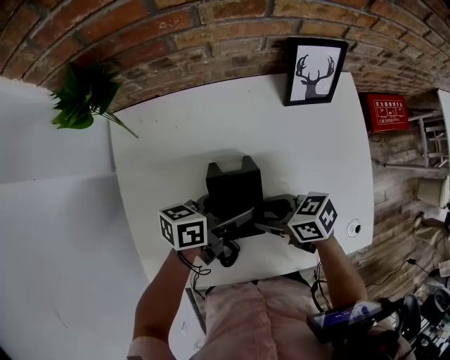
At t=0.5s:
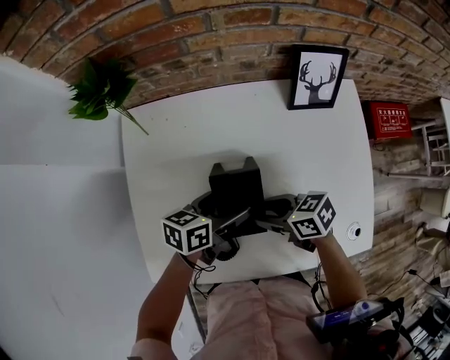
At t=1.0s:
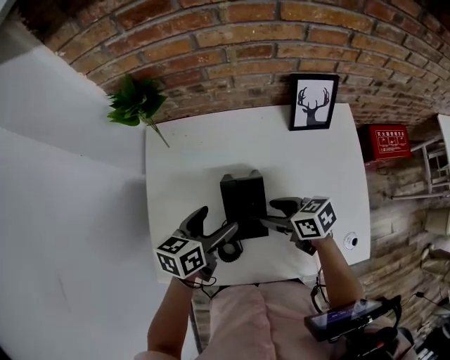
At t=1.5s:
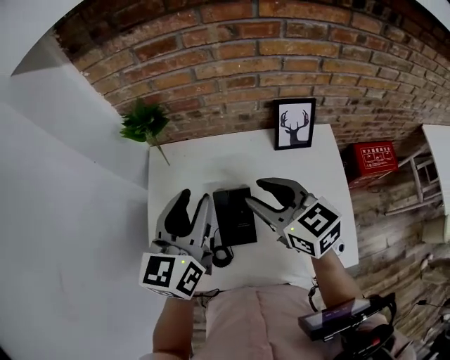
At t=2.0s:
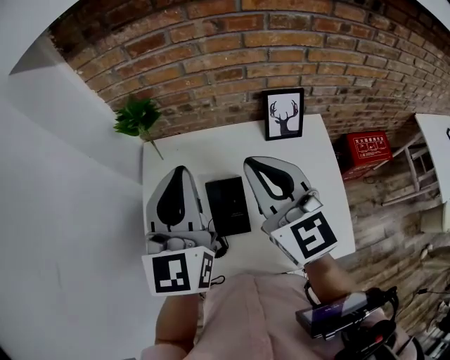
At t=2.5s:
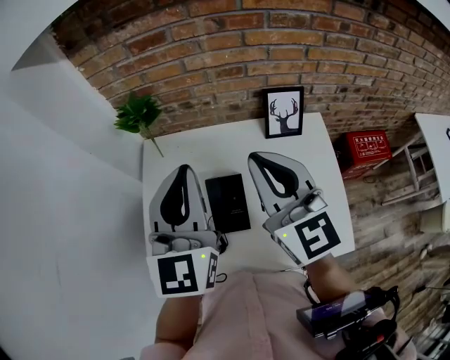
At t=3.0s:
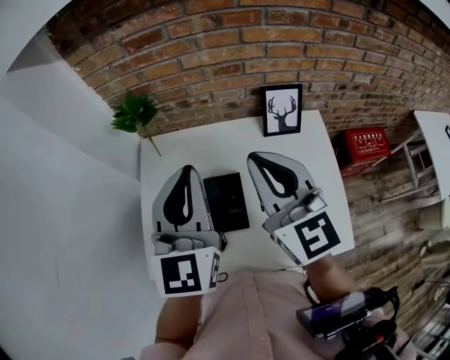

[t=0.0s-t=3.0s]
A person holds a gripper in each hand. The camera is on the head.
t=0.0s to t=1.5s: Both grippers move upward, some 25 cm. The right gripper swivels approximately 50 degrees. The left gripper swivels approximately 70 degrees, and closes its fingers.
t=1.5s to t=3.0s: The right gripper heads upward, covering about 10 cm, swivels roughly 30 degrees, and closes. Meanwhile the left gripper heads upward, covering some 5 cm, turns by approximately 20 degrees, and closes.

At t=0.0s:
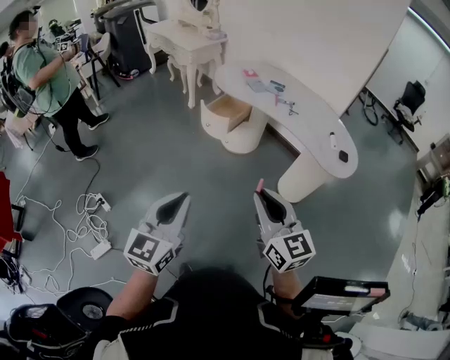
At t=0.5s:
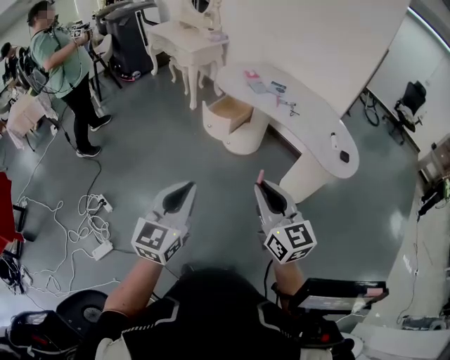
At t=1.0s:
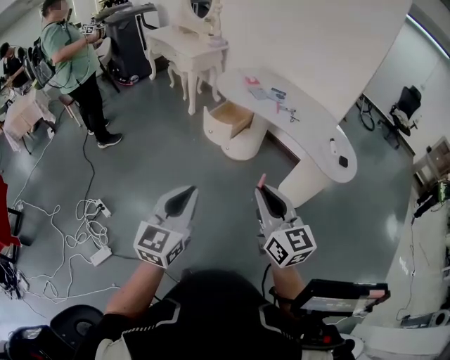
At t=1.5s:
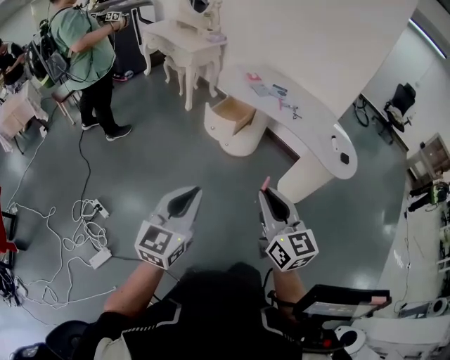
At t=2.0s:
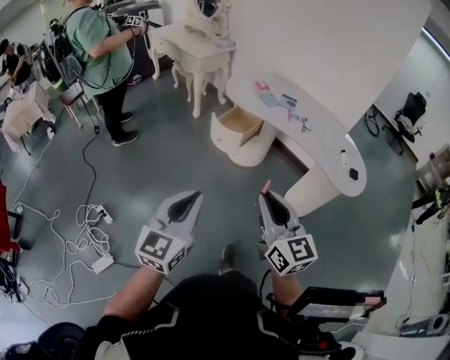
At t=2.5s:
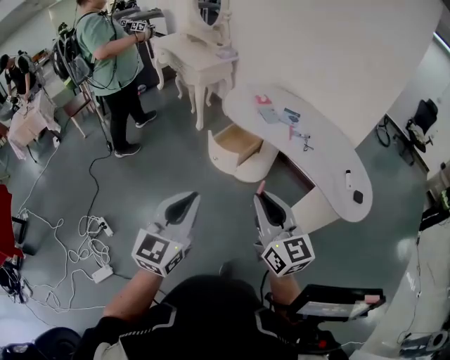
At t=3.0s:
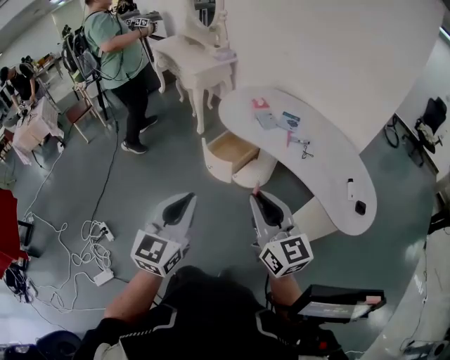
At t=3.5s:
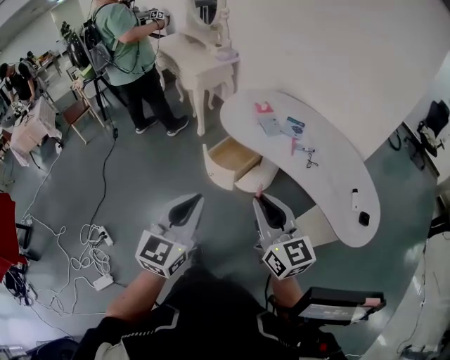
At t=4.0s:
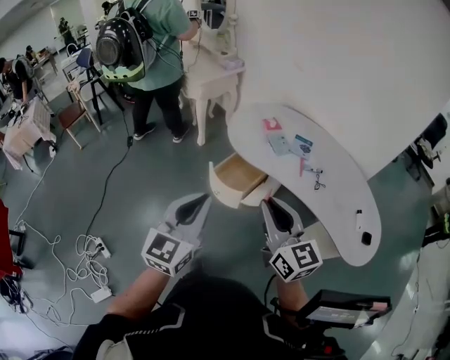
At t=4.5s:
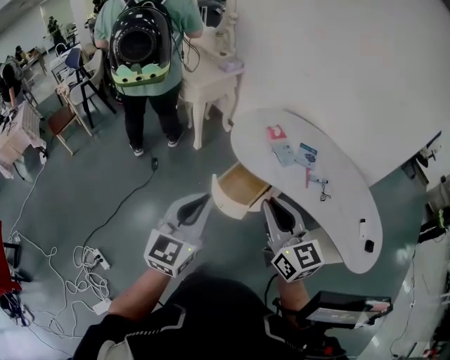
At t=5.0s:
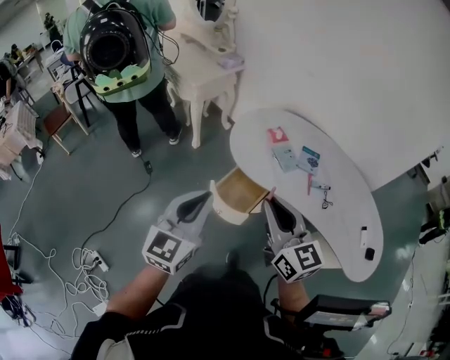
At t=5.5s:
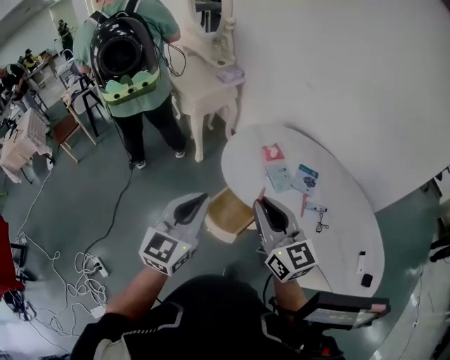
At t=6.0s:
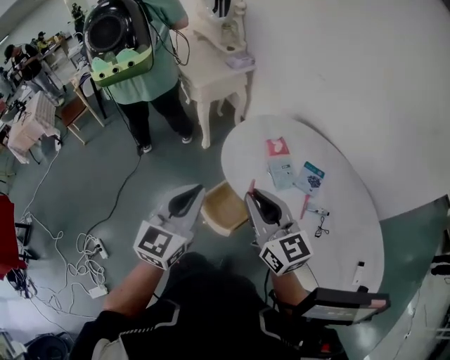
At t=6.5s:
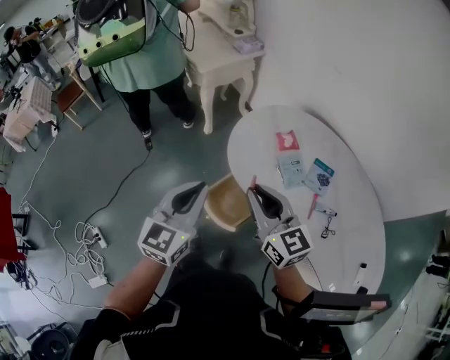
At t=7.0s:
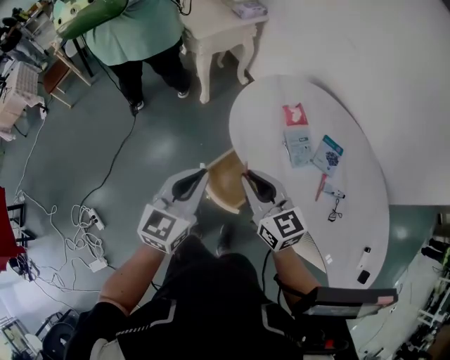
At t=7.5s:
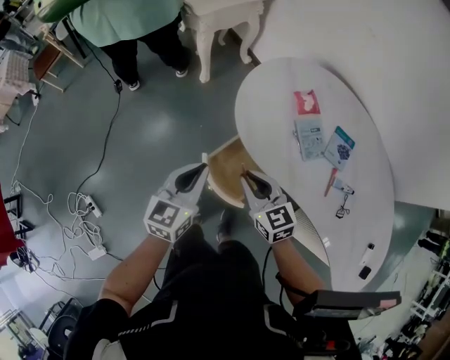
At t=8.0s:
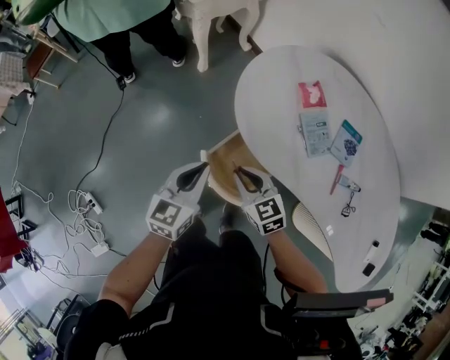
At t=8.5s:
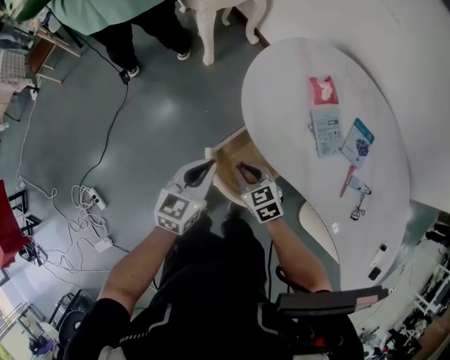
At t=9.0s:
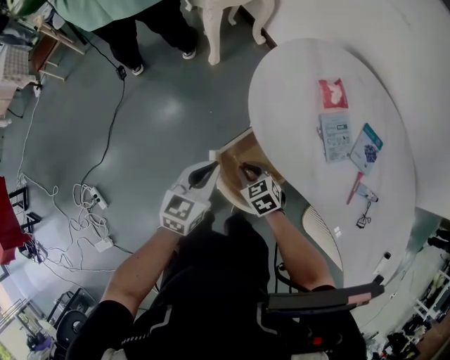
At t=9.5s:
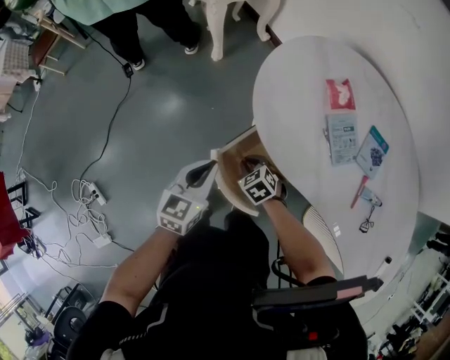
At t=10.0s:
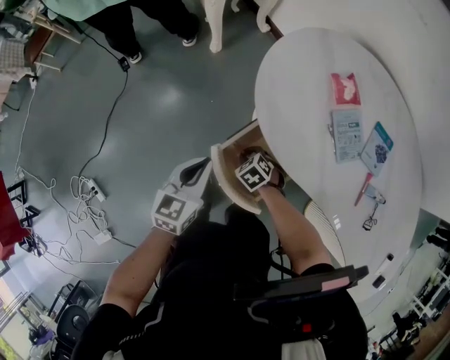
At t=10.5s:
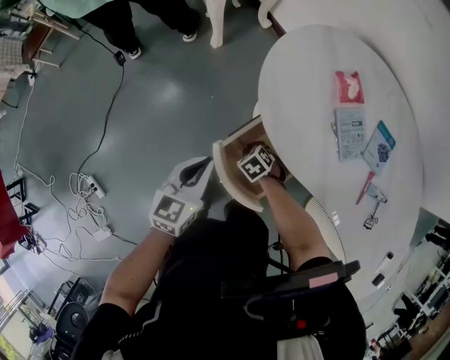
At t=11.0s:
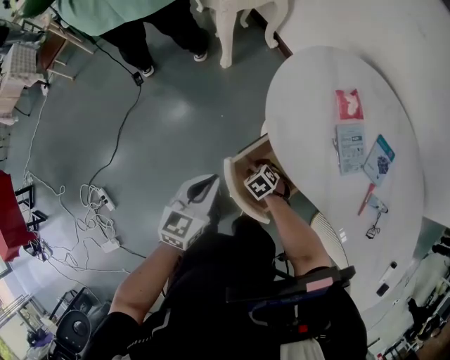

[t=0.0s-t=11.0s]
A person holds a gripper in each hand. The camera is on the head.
t=0.0s to t=2.0s: Both grippers move forward and to the left, some 10 cm.
t=2.0s to t=3.5s: The left gripper goes about 25 cm forward and to the right. The right gripper goes approximately 25 cm forward.
t=3.5s to t=5.5s: The grippers both shift forward by about 30 cm.
t=5.5s to t=7.5s: The right gripper is displaced downward by approximately 25 cm, and swivels approximately 30 degrees; the left gripper is displaced downward and forward by approximately 25 cm, and changes its angle by about 20 degrees.
t=7.5s to t=9.0s: The left gripper shifts approximately 15 cm downward, while the right gripper heads downward, covering about 20 cm, and swivels some 30 degrees.
t=9.0s to t=11.0s: The right gripper moves downward, about 10 cm, and turns by approximately 20 degrees.

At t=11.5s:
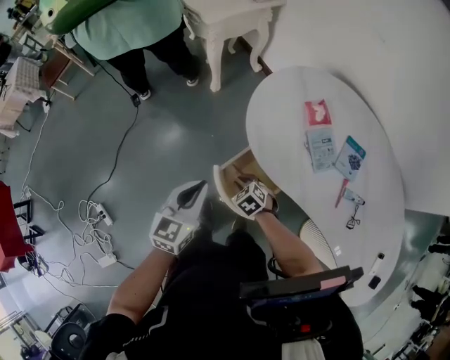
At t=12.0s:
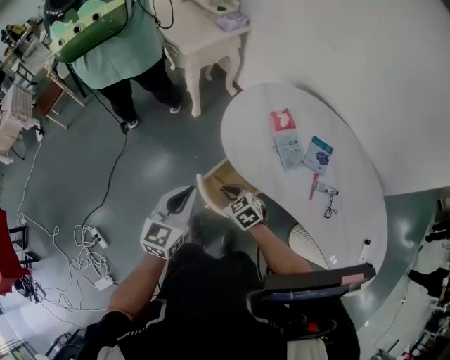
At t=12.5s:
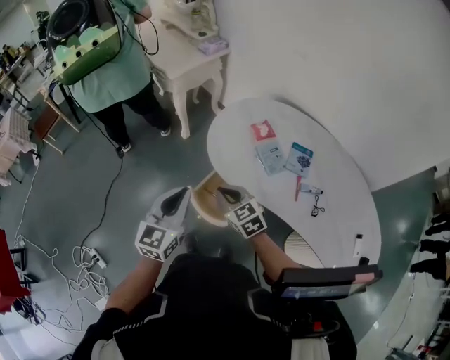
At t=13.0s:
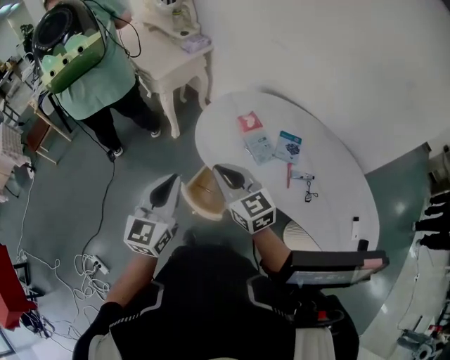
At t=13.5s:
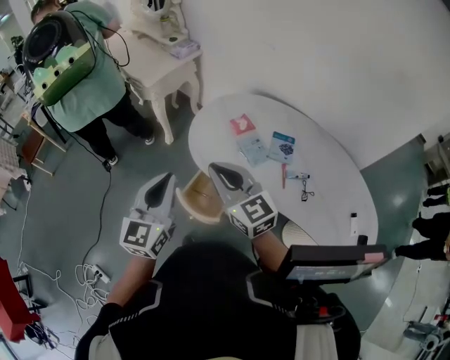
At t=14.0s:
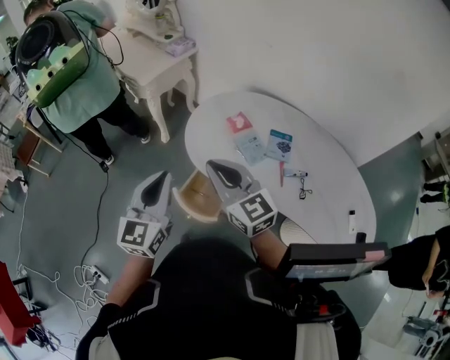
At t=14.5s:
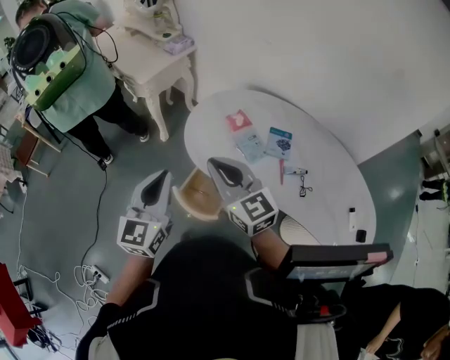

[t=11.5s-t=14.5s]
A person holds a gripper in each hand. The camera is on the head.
t=11.5s to t=13.0s: The left gripper shifts roughly 20 cm upward. The right gripper shifts approximately 40 cm upward, and tips its fingers upward by roughly 50 degrees.
t=13.0s to t=14.5s: The right gripper shifts some 5 cm upward.

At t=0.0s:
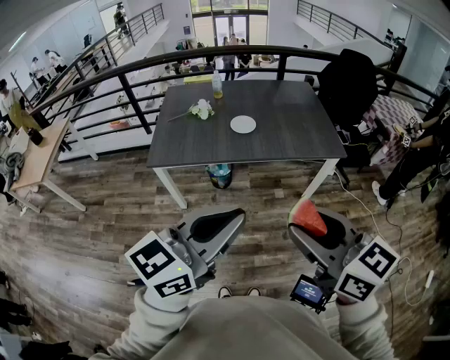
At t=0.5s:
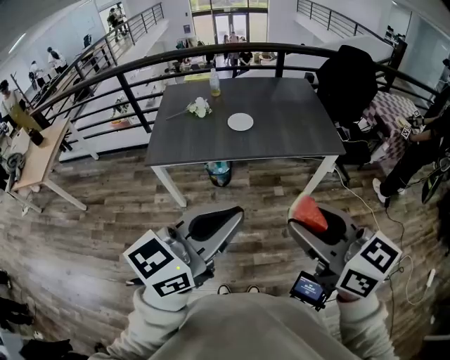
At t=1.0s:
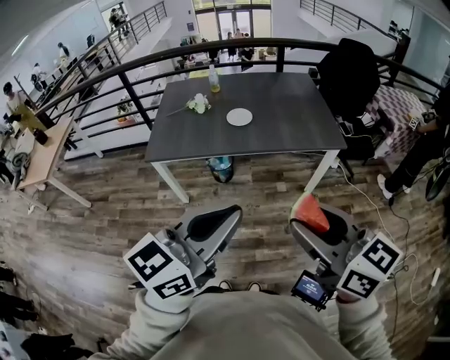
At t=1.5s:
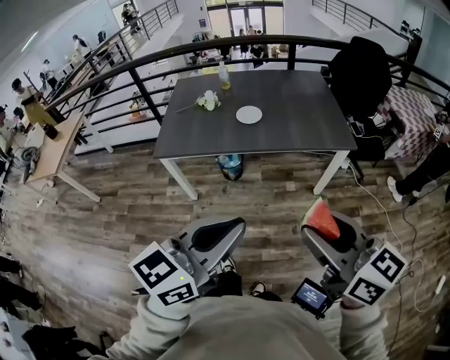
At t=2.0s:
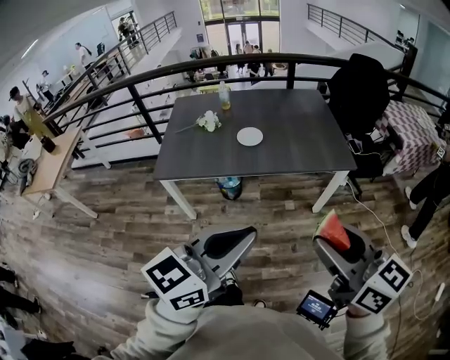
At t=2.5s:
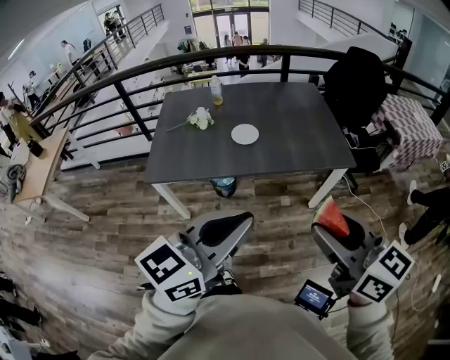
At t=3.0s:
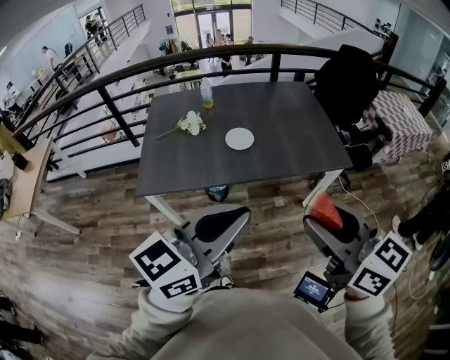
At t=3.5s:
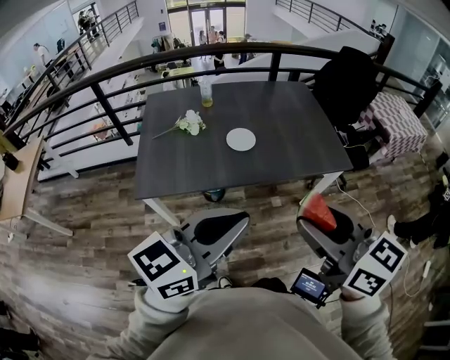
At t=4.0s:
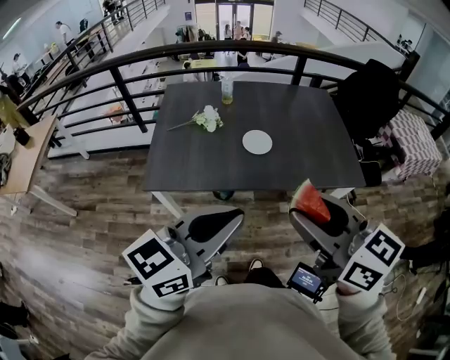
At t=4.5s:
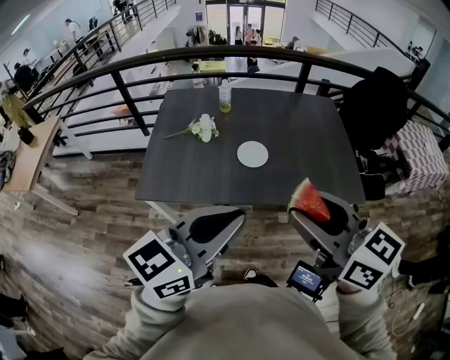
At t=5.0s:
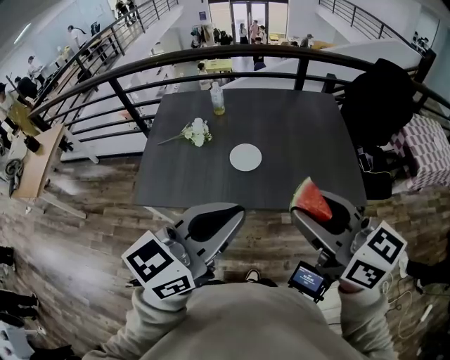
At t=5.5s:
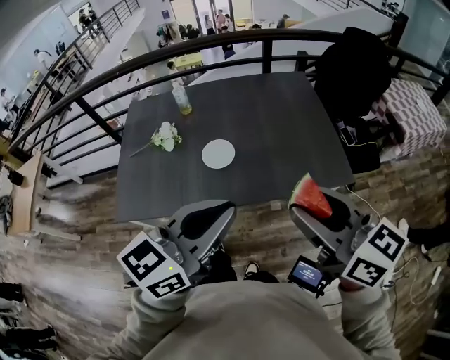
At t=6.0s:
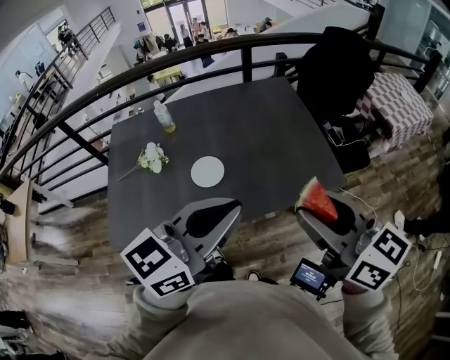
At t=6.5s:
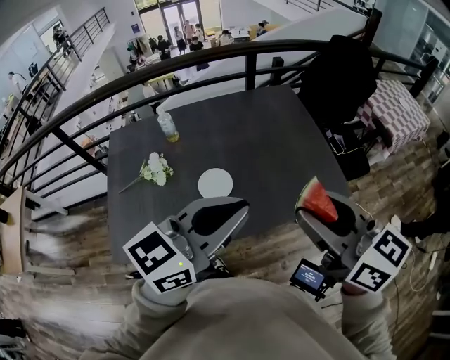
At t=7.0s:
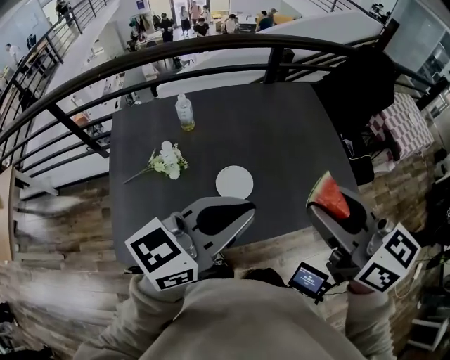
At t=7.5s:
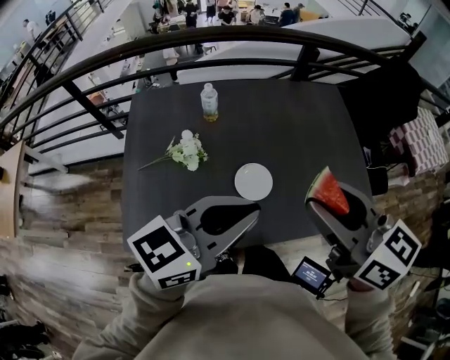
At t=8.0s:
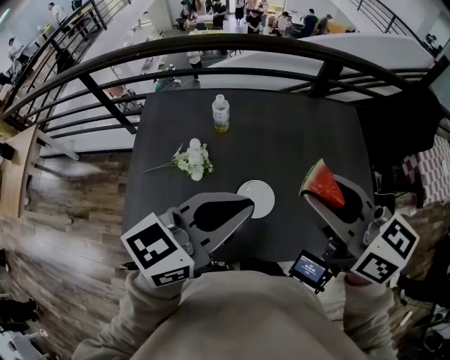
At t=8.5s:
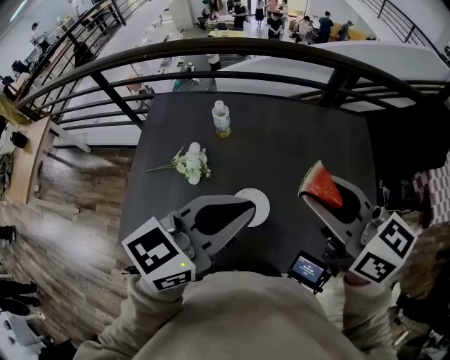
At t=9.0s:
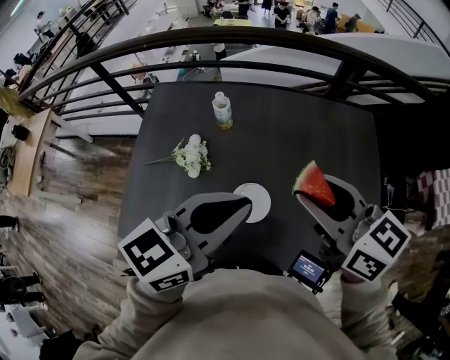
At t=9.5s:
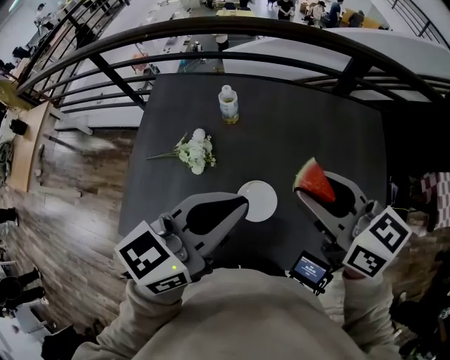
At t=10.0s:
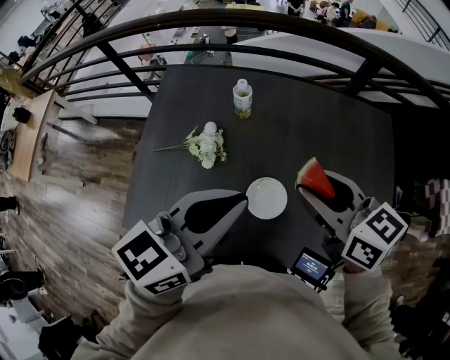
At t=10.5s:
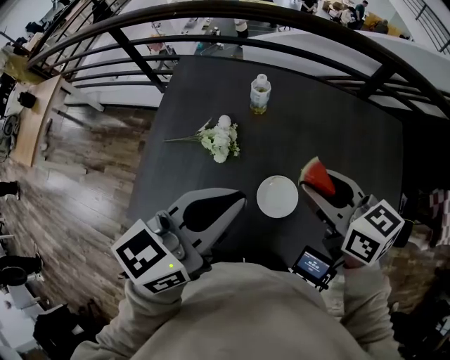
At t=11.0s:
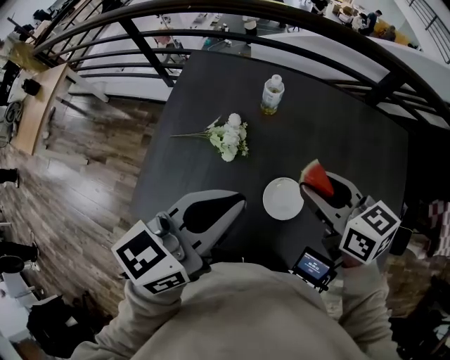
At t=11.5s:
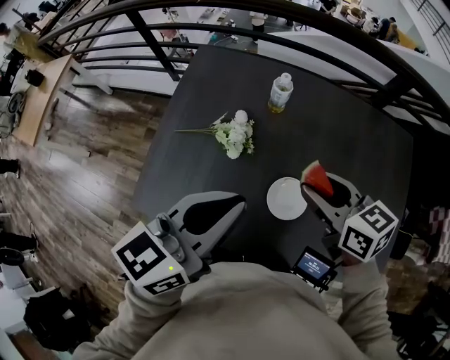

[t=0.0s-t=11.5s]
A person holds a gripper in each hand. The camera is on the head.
t=0.0s to t=2.0s: The left gripper changes place by about 5 cm. Meanwhile the right gripper is displaced to the right by about 10 cm.
t=2.0s to t=4.0s: The left gripper moves forward and to the left, roughly 25 cm, while the right gripper is displaced to the left and forward by roughly 25 cm.
t=4.0s to t=6.0s: The left gripper is displaced forward and to the right by roughly 25 cm. The right gripper heads to the right and forward, covering some 25 cm.
t=6.0s to t=7.5s: The grippers both shift to the left and forward by about 25 cm.
t=7.5s to t=9.5s: The left gripper shifts some 10 cm forward, and turns by approximately 20 degrees. The right gripper is displaced forward and downward by approximately 15 cm.
t=9.5s to t=11.5s: The left gripper is displaced to the left by some 10 cm; the right gripper heads downward and to the left, covering approximately 15 cm.
